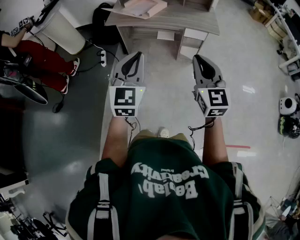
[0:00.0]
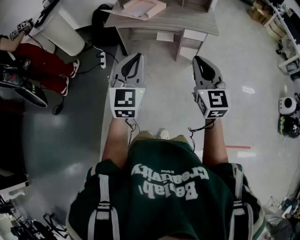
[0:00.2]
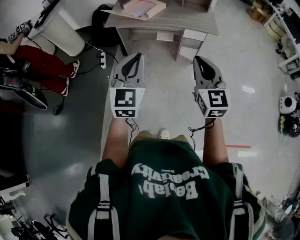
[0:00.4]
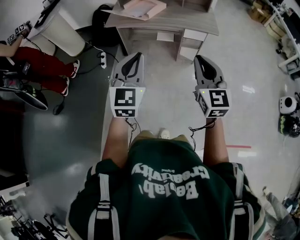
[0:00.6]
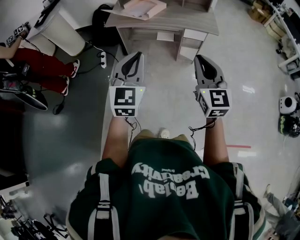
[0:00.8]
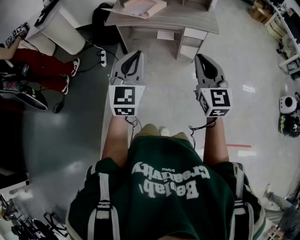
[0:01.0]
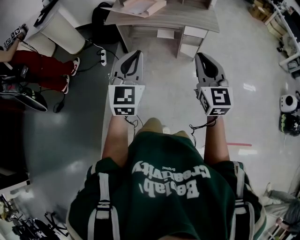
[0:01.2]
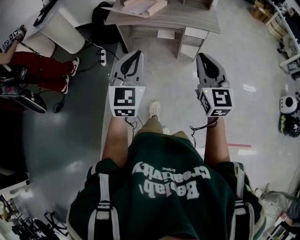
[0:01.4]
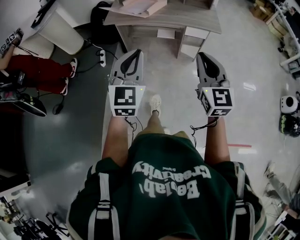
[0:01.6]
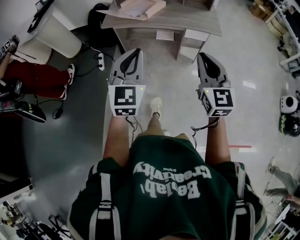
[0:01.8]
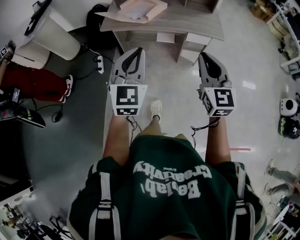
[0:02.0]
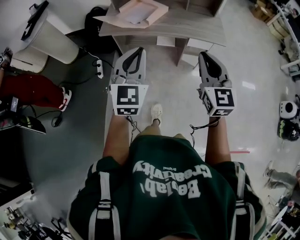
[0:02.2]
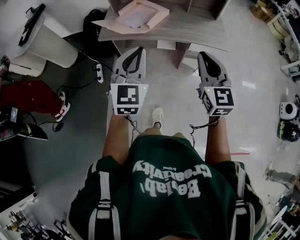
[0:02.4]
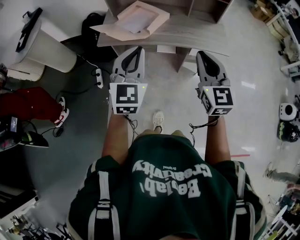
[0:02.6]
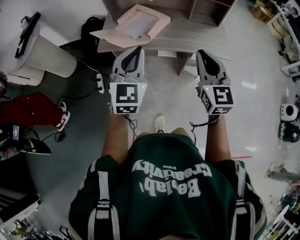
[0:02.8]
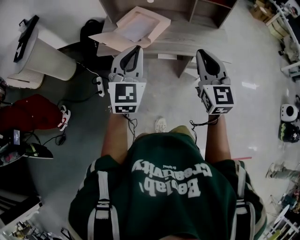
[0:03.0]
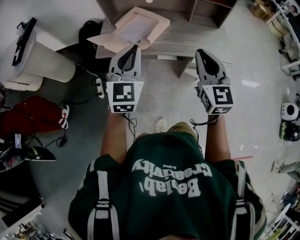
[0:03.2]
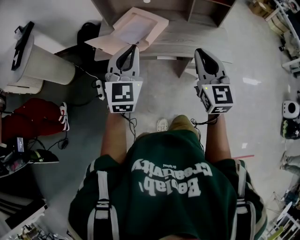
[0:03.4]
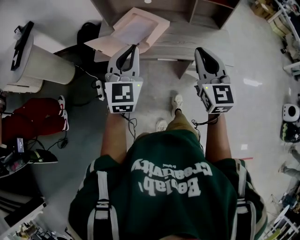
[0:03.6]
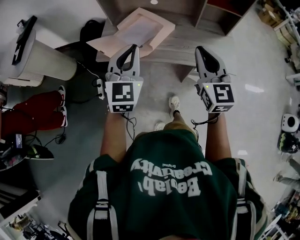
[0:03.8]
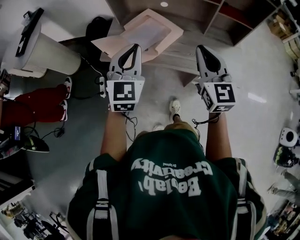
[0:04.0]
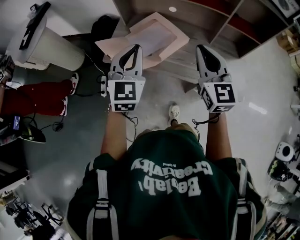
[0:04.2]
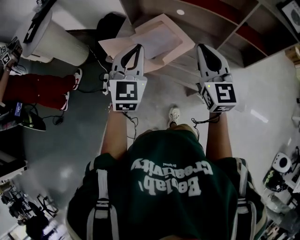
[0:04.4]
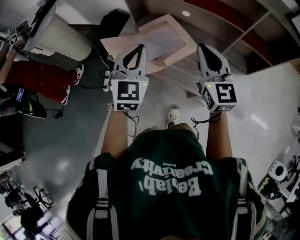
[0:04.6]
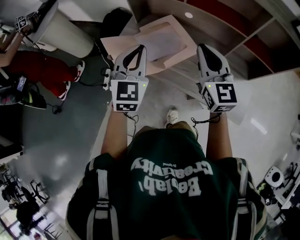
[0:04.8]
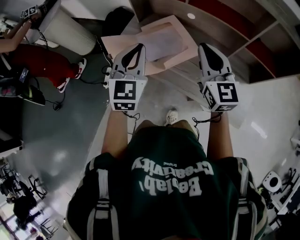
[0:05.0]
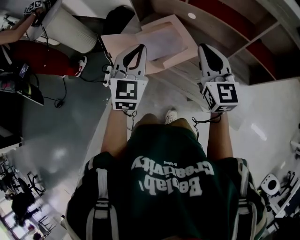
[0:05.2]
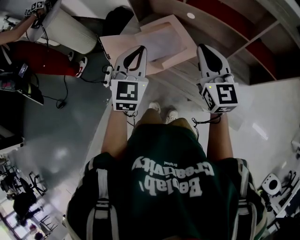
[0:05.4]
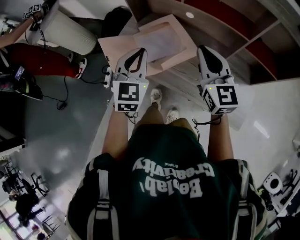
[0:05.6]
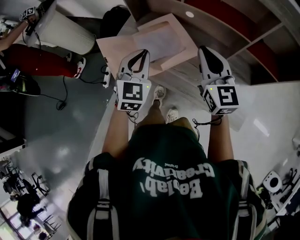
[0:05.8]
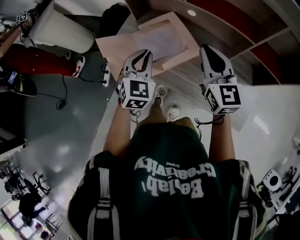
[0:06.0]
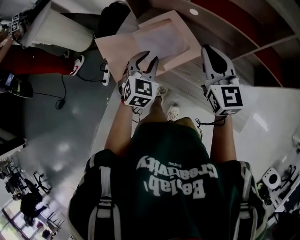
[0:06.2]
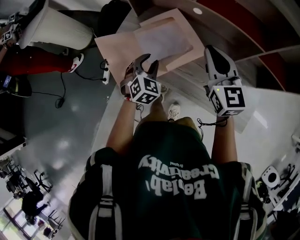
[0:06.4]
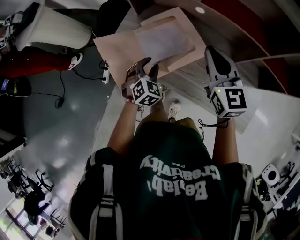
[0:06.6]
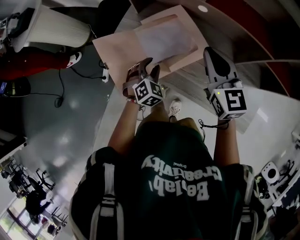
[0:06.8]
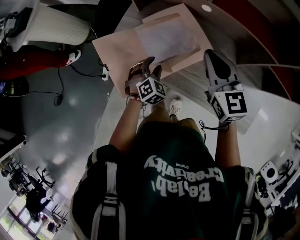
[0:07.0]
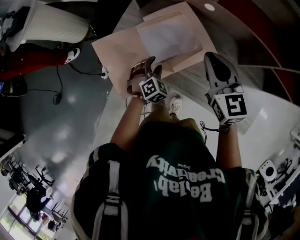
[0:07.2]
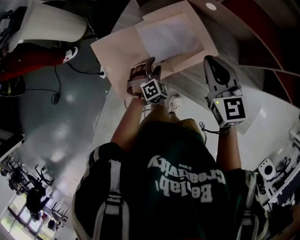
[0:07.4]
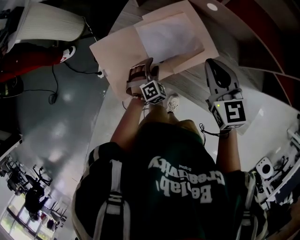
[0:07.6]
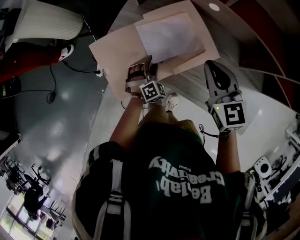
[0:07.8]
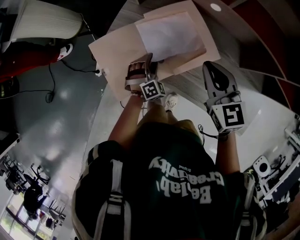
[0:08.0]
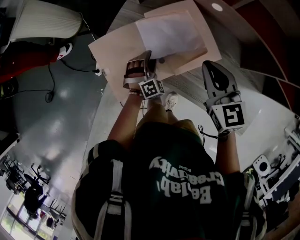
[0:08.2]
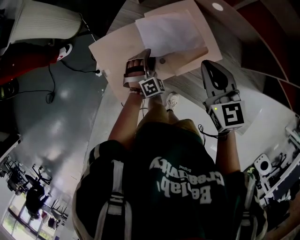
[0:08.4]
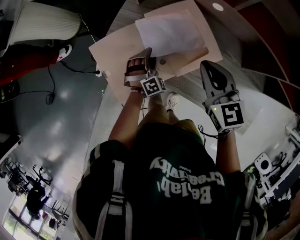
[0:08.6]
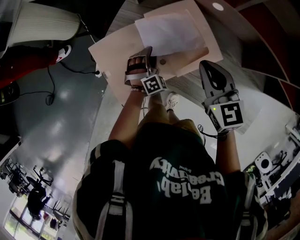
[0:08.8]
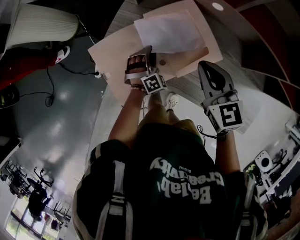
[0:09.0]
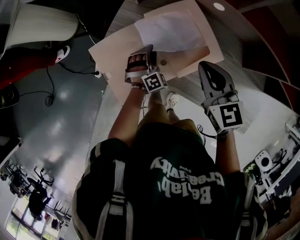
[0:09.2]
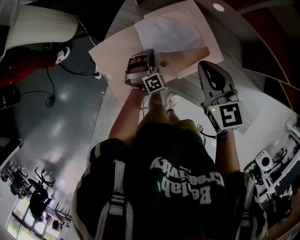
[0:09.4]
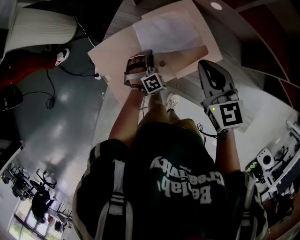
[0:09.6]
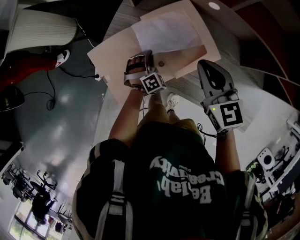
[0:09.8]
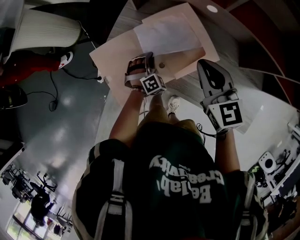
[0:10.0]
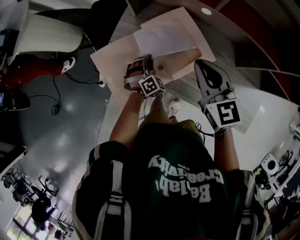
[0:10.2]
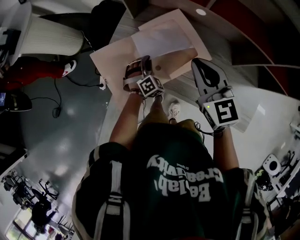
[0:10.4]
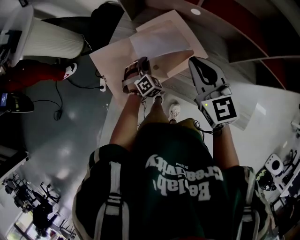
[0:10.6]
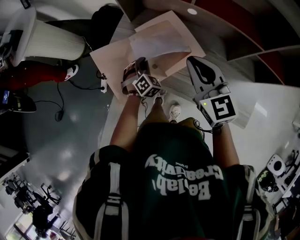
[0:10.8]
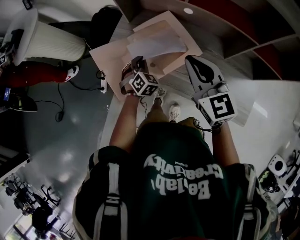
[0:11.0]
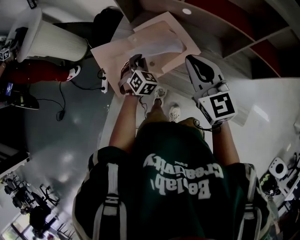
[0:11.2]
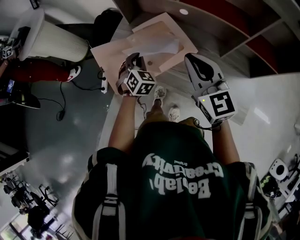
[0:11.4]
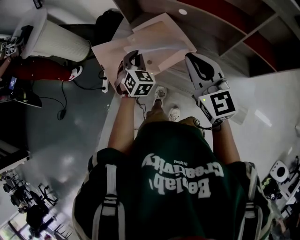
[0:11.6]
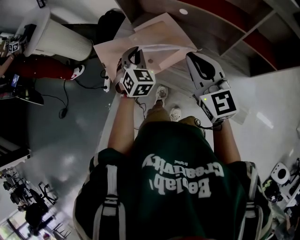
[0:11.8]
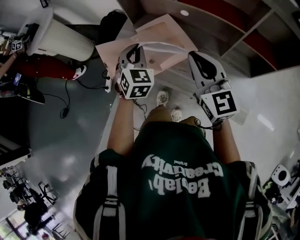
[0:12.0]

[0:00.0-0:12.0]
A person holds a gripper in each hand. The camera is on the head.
0:00.0 to 0:01.6: The grippers move only a little.
0:01.6 to 0:03.0: The grippers both shift forward by some 40 cm.
0:03.0 to 0:04.4: Both grippers travel together forward, roughly 25 cm.
0:04.4 to 0:06.0: The right gripper goes roughly 15 cm forward, downward and to the right. The left gripper goes some 15 cm downward, forward and to the right.
0:06.0 to 0:07.6: The left gripper goes about 30 cm downward, rotates some 40 degrees, and opens up. The right gripper heads downward, forward and to the left, covering about 15 cm.
0:07.6 to 0:09.0: The right gripper ends up about 5 cm from where it was, while the left gripper heads forward, covering about 10 cm.
0:09.0 to 0:10.4: The two grippers go approximately 5 cm upward. The left gripper closes its fingers.
0:10.4 to 0:12.0: The left gripper travels upward and backward by about 30 cm, and changes its angle by about 30 degrees; the right gripper shifts about 20 cm backward and upward.

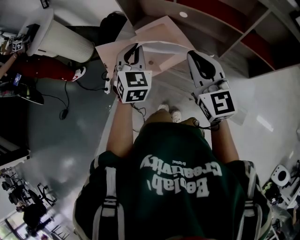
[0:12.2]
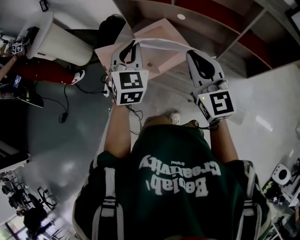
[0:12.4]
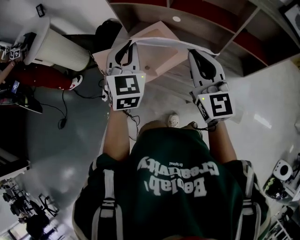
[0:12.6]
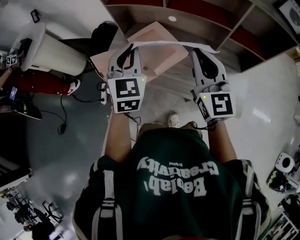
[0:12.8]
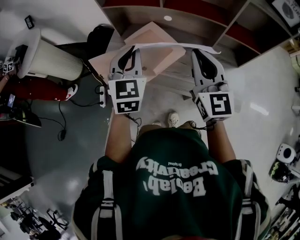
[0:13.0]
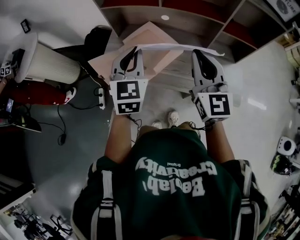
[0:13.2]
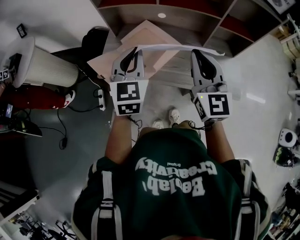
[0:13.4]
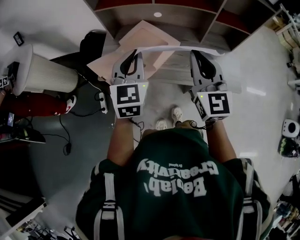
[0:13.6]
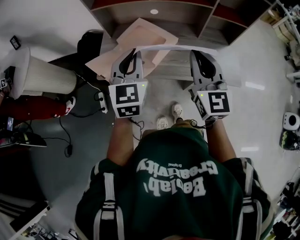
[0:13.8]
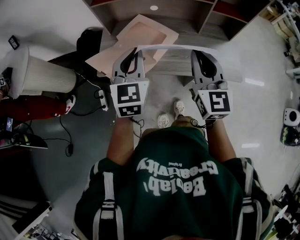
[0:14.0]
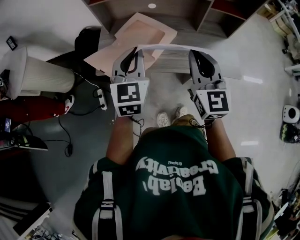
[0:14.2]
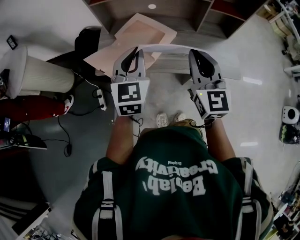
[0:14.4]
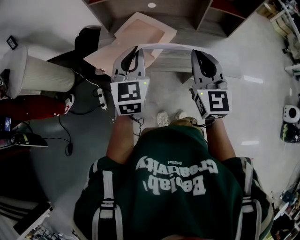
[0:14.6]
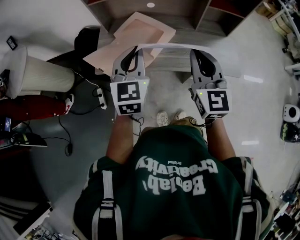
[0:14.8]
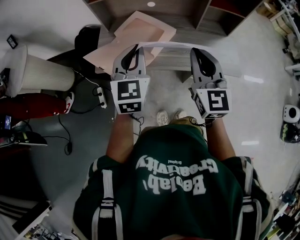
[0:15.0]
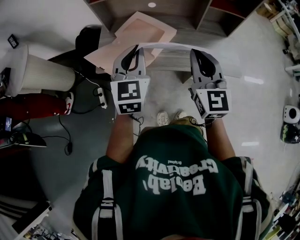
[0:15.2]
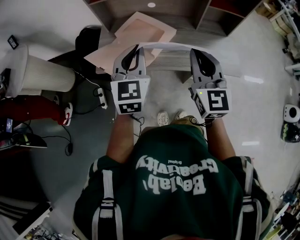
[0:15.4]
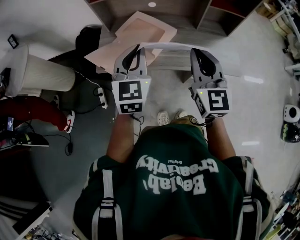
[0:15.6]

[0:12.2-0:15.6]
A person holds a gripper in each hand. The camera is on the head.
0:12.2 to 0:13.8: The right gripper changes place by about 10 cm, and rotates approximately 30 degrees; the left gripper changes place by roughly 10 cm, and swivels approximately 30 degrees.
0:13.8 to 0:15.6: There are only small adjustments of the grippers.

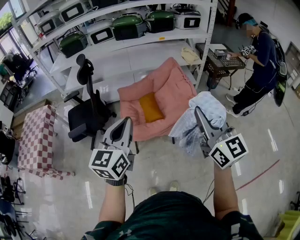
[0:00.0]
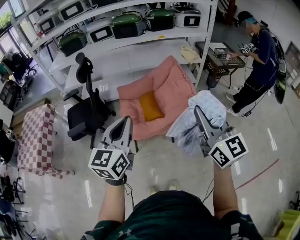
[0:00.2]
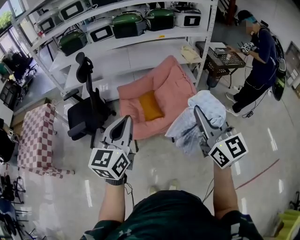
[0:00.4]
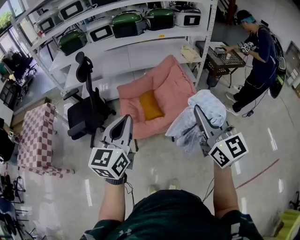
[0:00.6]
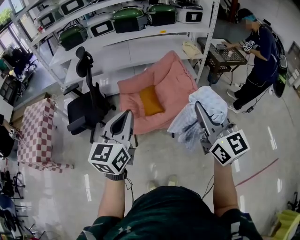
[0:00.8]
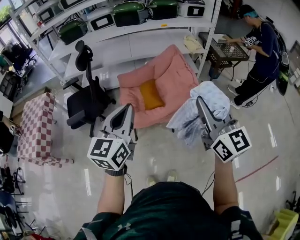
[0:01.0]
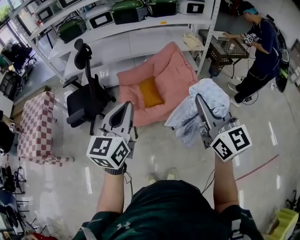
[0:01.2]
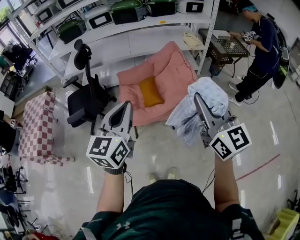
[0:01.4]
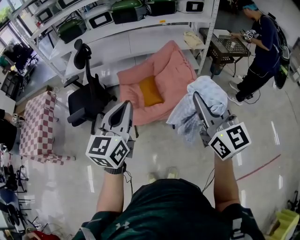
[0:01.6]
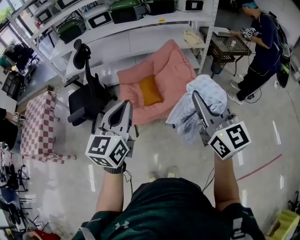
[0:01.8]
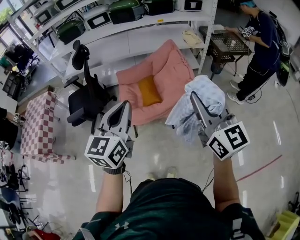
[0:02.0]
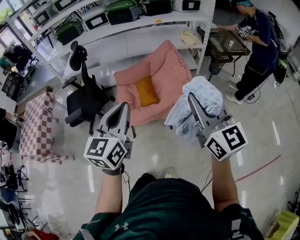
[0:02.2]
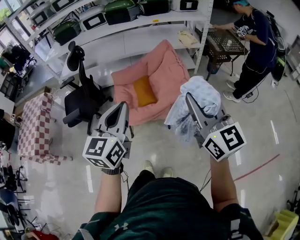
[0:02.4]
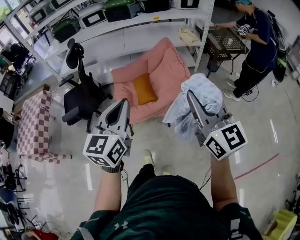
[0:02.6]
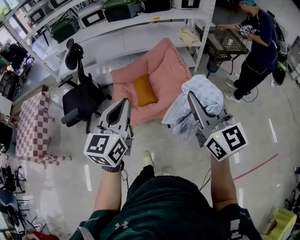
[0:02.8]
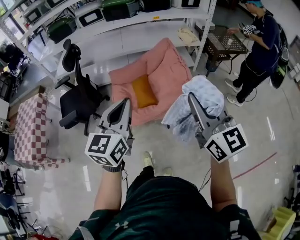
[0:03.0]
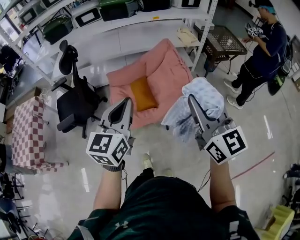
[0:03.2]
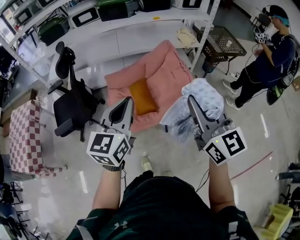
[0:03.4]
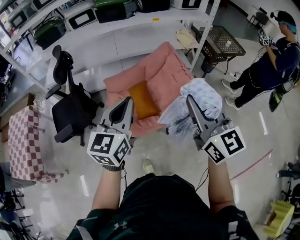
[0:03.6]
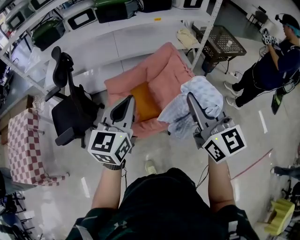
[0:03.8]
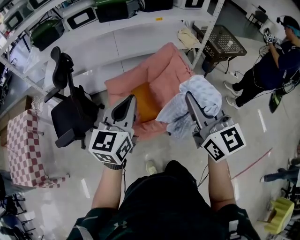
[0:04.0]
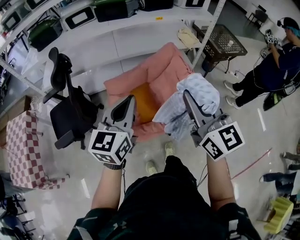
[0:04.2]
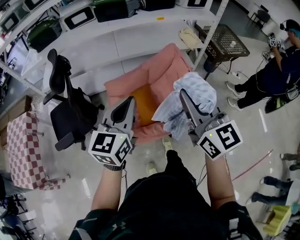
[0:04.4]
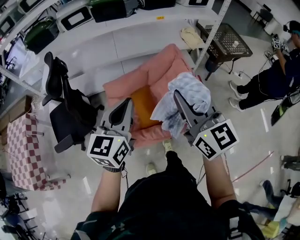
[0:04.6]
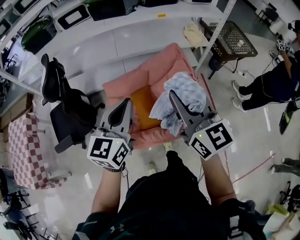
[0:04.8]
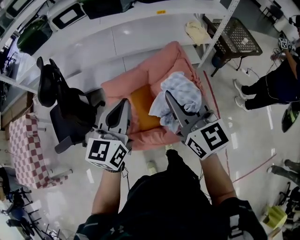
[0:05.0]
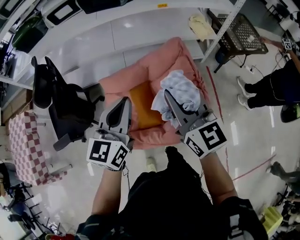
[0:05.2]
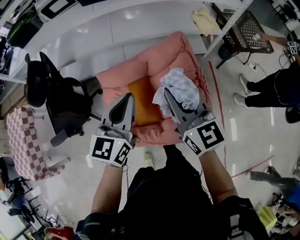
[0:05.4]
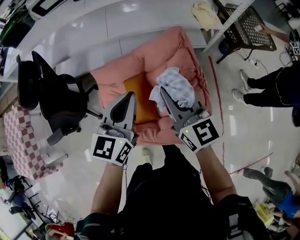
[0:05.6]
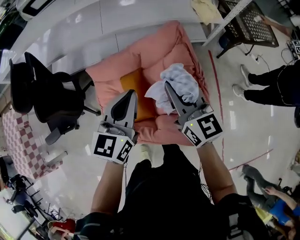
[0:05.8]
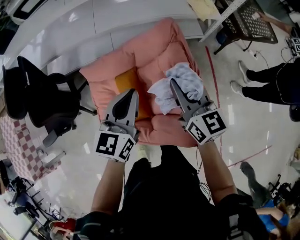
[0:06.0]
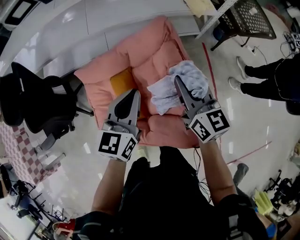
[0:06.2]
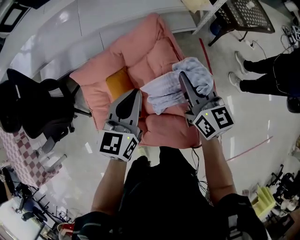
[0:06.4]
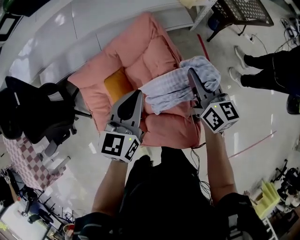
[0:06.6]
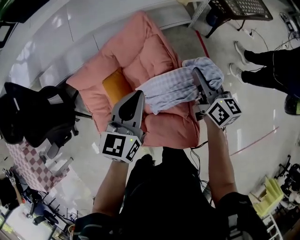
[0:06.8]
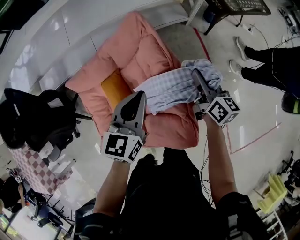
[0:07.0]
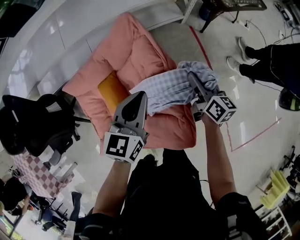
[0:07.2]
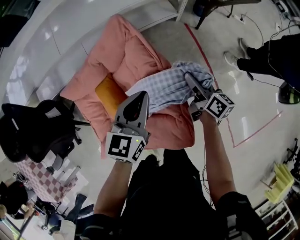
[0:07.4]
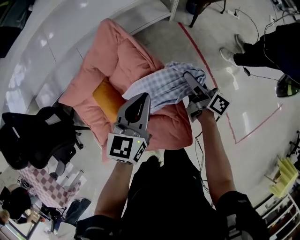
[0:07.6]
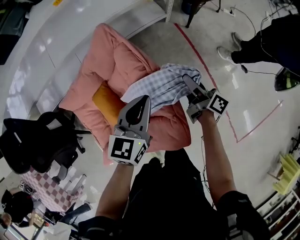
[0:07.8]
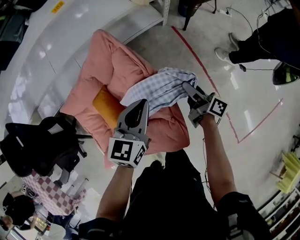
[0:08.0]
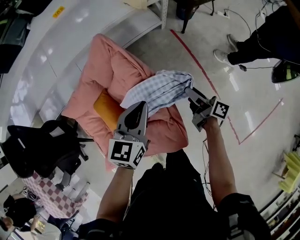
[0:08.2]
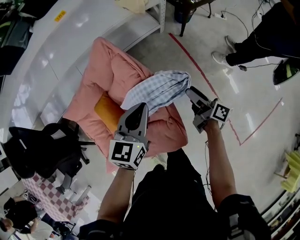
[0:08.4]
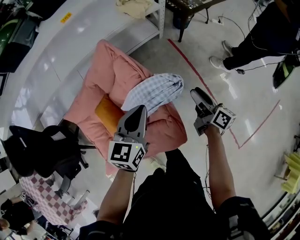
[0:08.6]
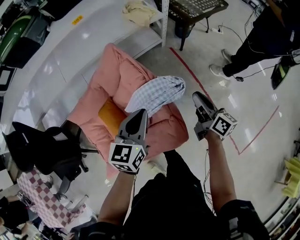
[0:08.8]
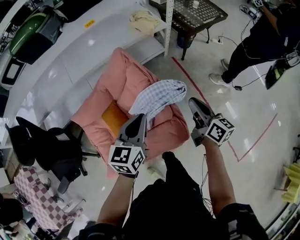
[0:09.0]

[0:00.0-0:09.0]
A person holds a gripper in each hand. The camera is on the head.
0:00.0 to 0:01.6: The grippers make only small movements.
0:01.6 to 0:03.0: The left gripper moves forward, about 5 cm, while the right gripper shifts by roughly 5 cm.
0:03.0 to 0:04.4: The right gripper shifts about 25 cm forward and to the left, while the left gripper heads forward, covering approximately 25 cm.
0:04.4 to 0:06.0: The two grippers go about 35 cm forward, downward and to the right.
0:06.0 to 0:07.6: The grippers both shift to the right and downward by about 25 cm. The left gripper turns by some 20 degrees, while the right gripper rotates around the line of its fingers by approximately 50 degrees, clockwise from behind, and opens.
0:07.6 to 0:09.0: The left gripper heads backward and upward, covering roughly 10 cm. Meanwhile the right gripper shifts about 20 cm upward and backward, swivels about 20 degrees, and closes.
